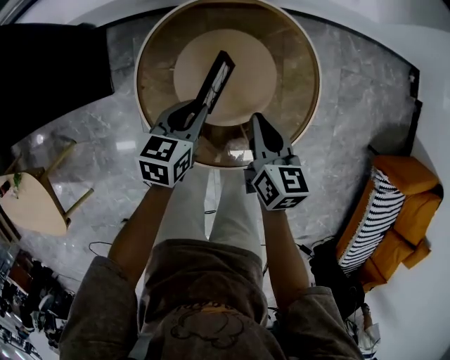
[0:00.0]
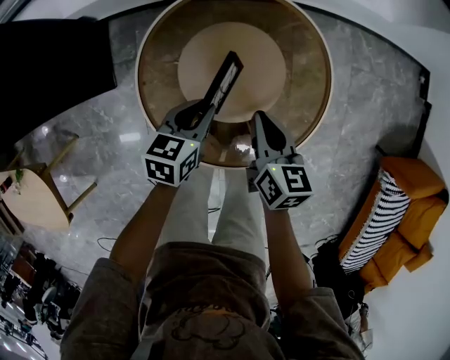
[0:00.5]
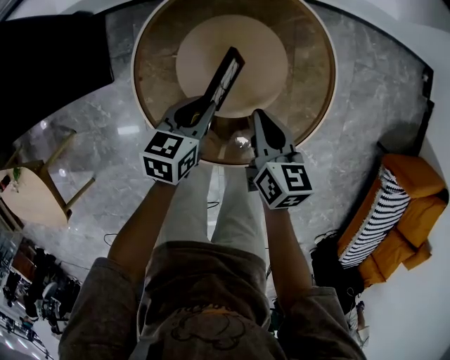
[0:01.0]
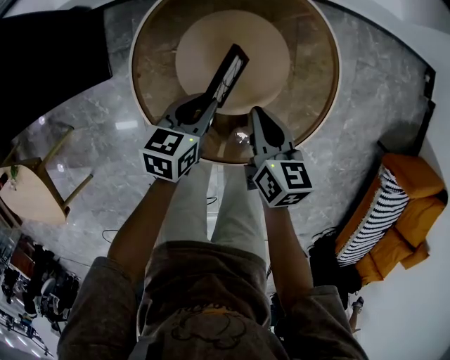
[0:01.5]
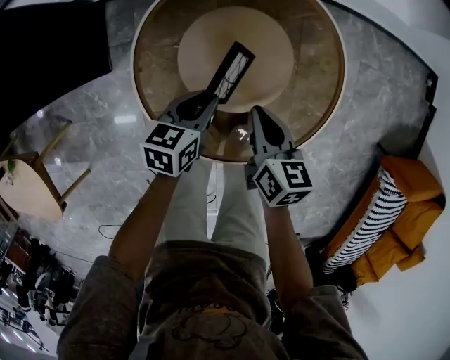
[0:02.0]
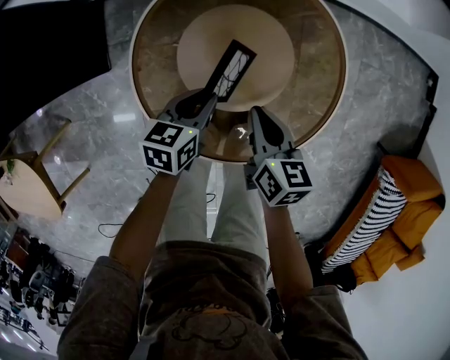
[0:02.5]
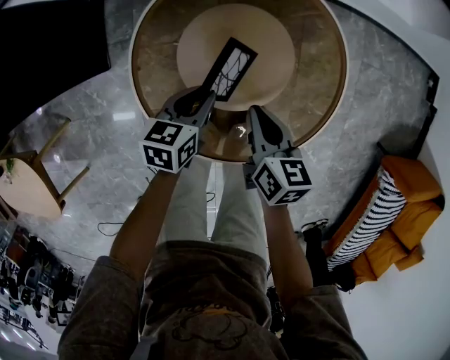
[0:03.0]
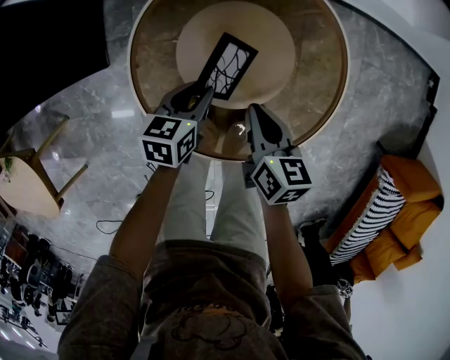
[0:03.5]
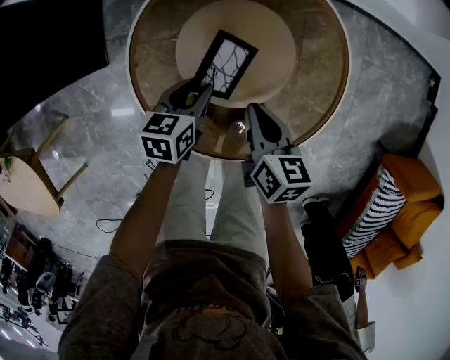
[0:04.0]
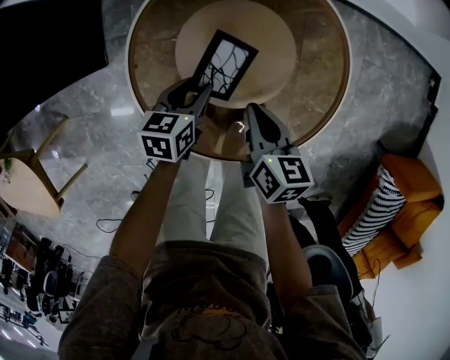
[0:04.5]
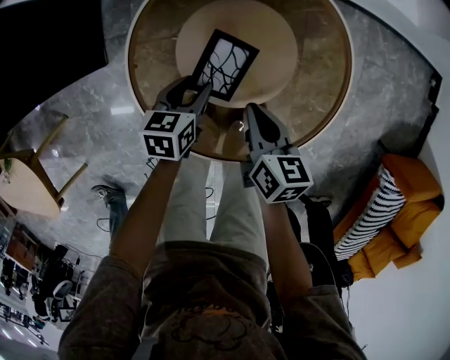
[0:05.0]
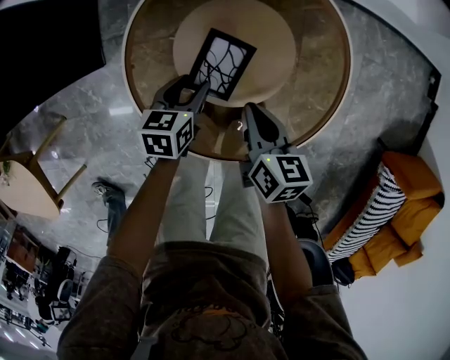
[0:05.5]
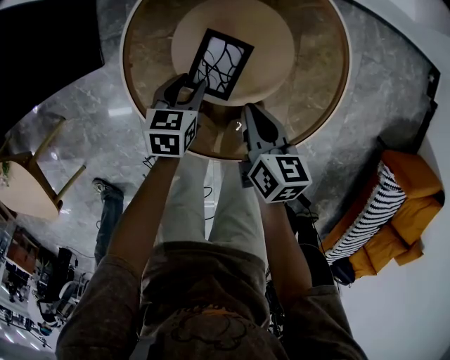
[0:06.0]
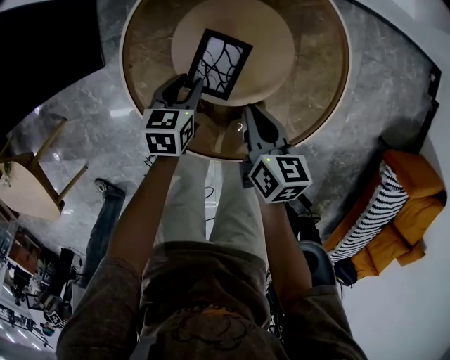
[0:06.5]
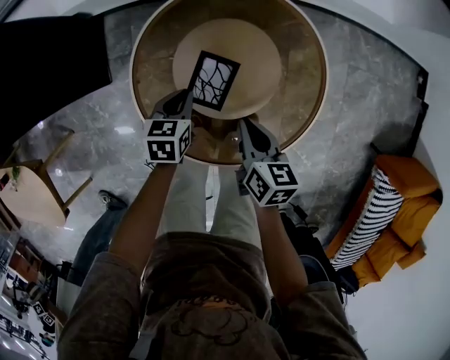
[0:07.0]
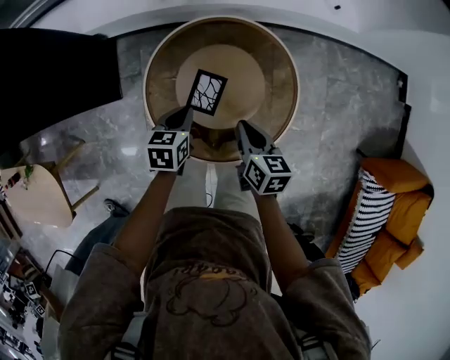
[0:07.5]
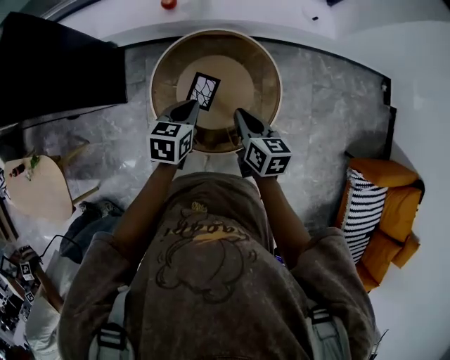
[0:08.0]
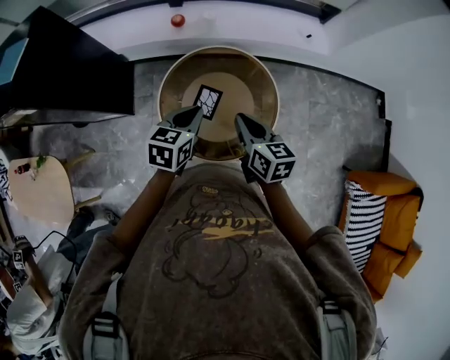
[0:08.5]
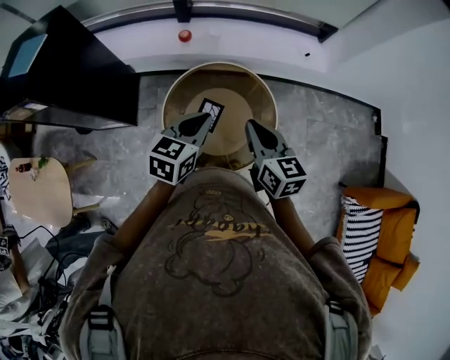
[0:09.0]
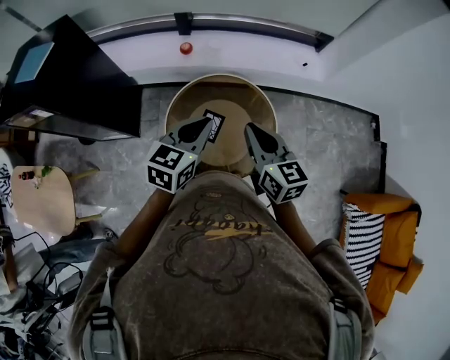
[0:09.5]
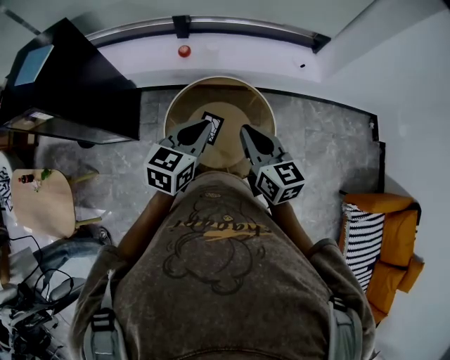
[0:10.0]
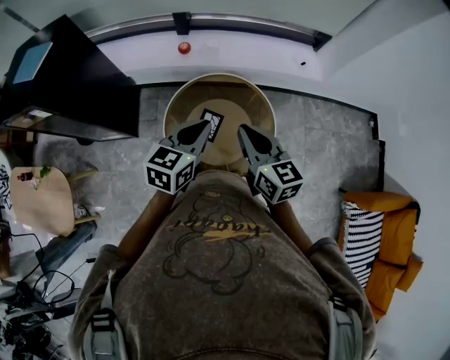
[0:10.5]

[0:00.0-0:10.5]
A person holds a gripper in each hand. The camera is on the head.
0.0 to 2.0 s: Both grippers move downward, some 5 cm.
2.0 to 4.0 s: The grippers make only small movements.
4.0 to 6.5 s: The grippers make only small movements.
6.5 to 8.5 s: Both grippers travel together upward, approximately 35 cm. The left gripper closes. Meanwhile the right gripper turns by roughly 20 degrees.
8.5 to 10.5 s: Both grippers move upward, about 10 cm.

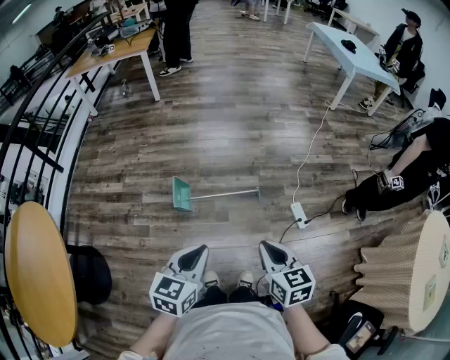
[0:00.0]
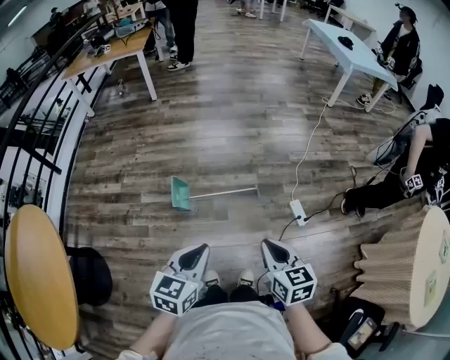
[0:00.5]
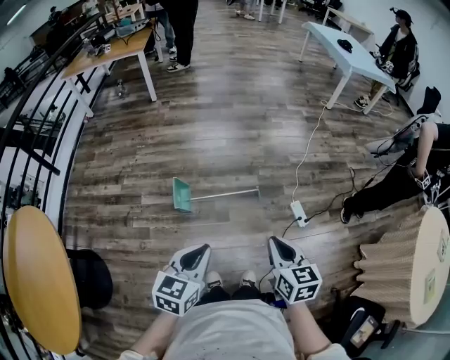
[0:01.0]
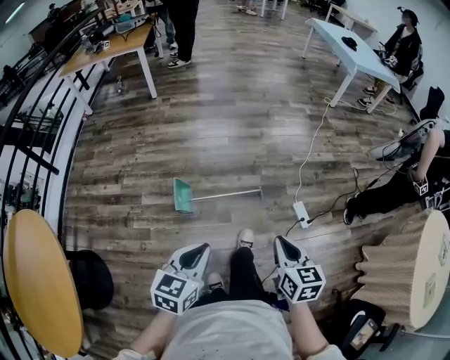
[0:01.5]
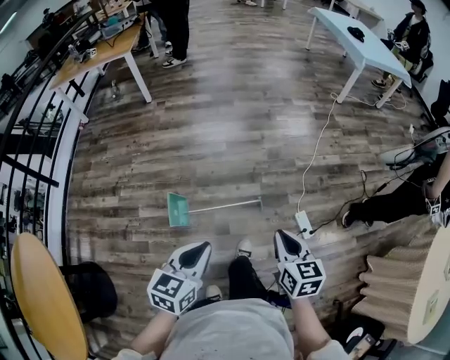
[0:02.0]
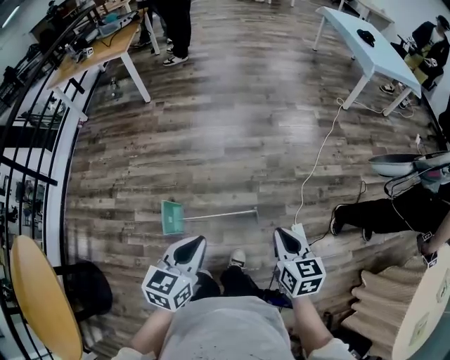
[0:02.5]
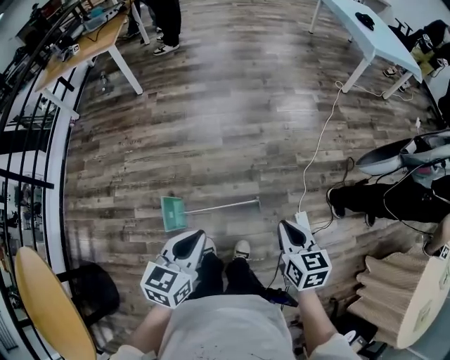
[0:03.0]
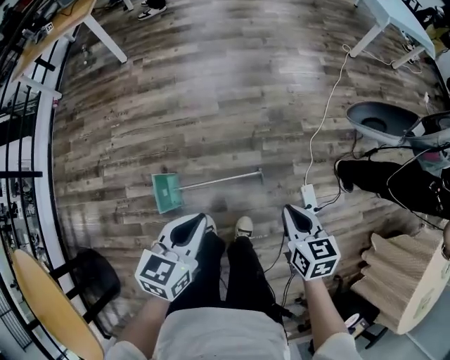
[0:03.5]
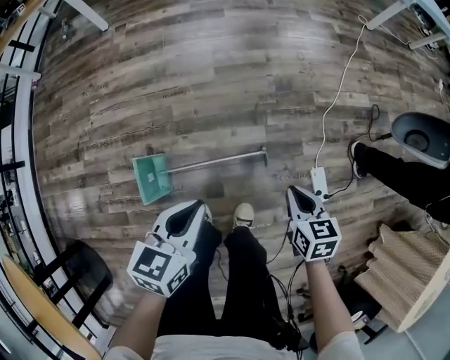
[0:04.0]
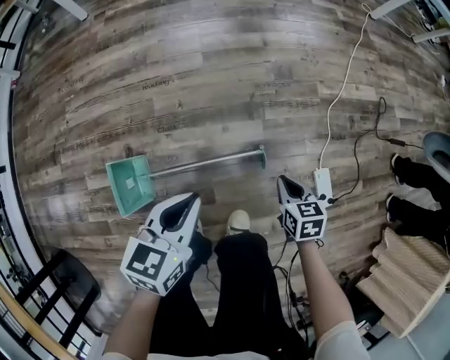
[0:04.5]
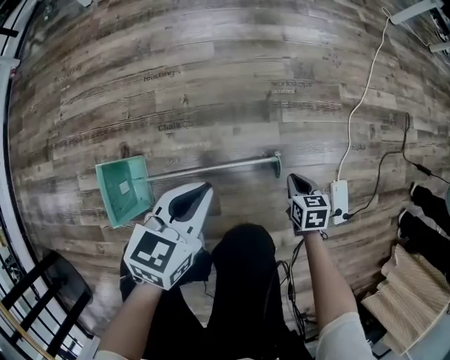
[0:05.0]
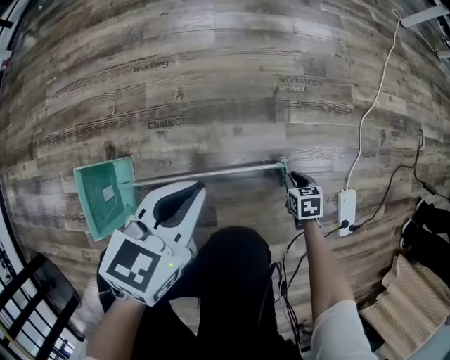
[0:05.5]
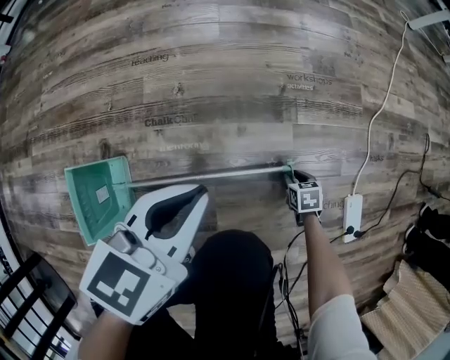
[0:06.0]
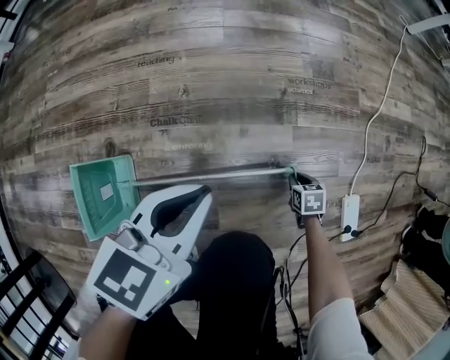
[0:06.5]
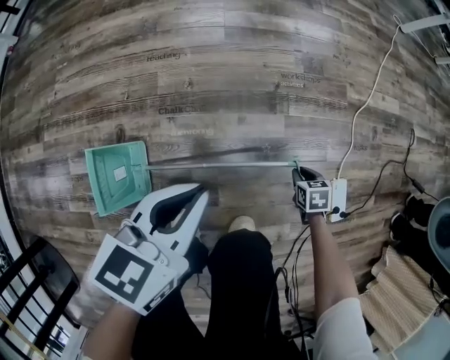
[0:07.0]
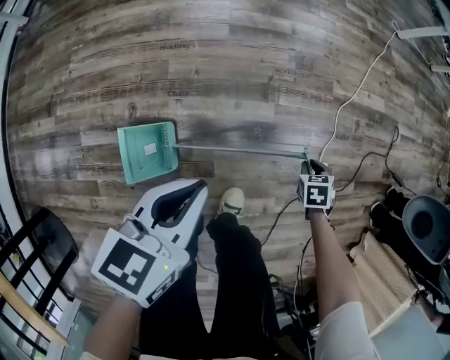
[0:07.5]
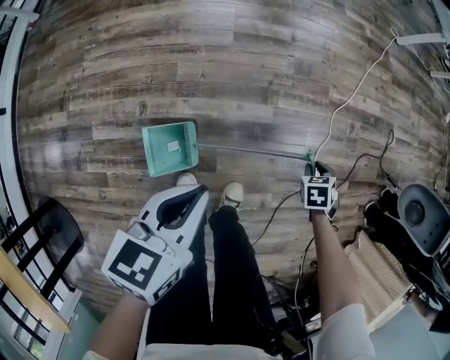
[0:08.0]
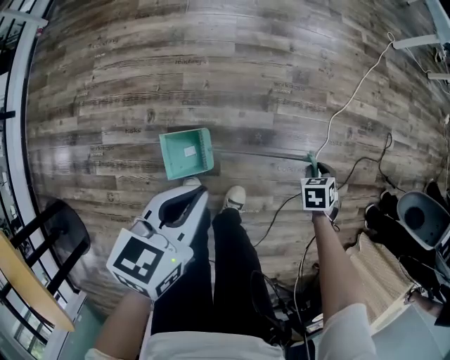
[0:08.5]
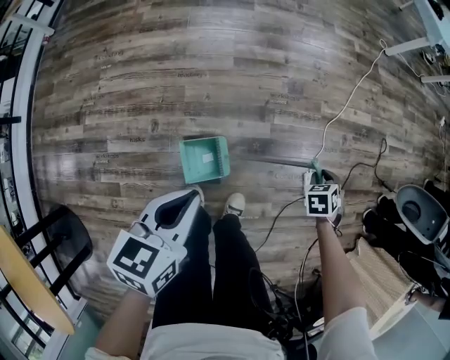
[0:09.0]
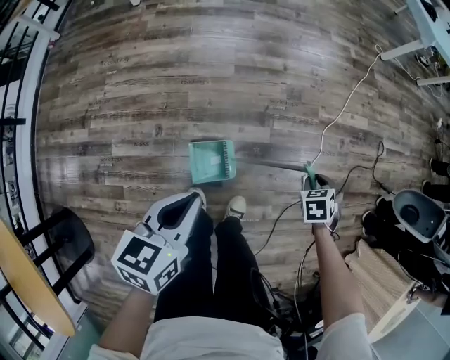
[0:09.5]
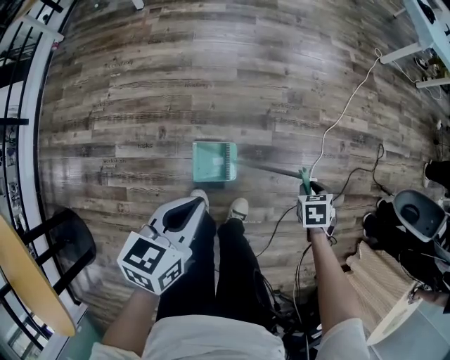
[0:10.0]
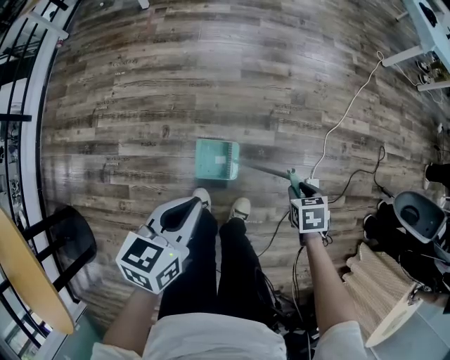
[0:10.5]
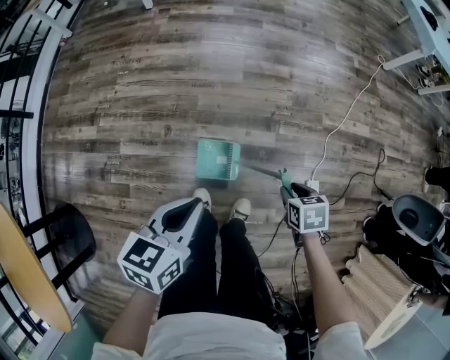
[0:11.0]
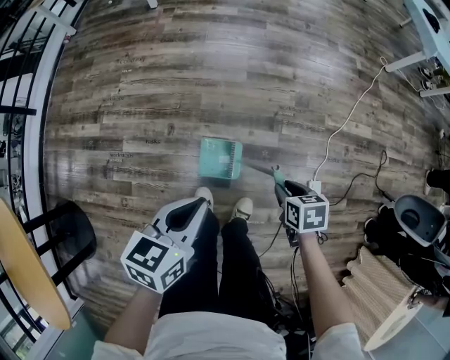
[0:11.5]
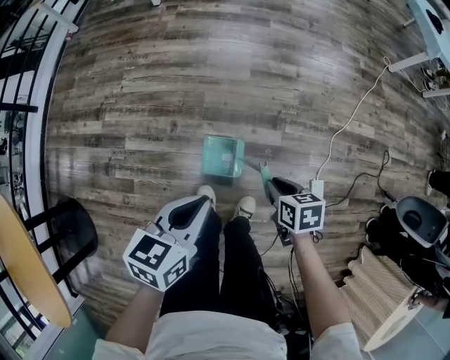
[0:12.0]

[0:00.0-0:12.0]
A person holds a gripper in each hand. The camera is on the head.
0.0 to 2.0 s: The two grippers go some 20 cm forward.
2.0 to 4.0 s: The grippers both shift downward and forward by about 40 cm.
4.0 to 6.0 s: The left gripper heads downward, covering roughly 30 cm; the right gripper shifts approximately 60 cm downward, swivels approximately 30 degrees, and opens up.
6.0 to 8.0 s: The two grippers go approximately 35 cm upward. The right gripper rotates roughly 20 degrees.
8.0 to 10.0 s: The left gripper moves upward, some 10 cm. Meanwhile the right gripper travels upward by approximately 15 cm.
10.0 to 12.0 s: The right gripper moves approximately 20 cm, and swivels approximately 30 degrees.

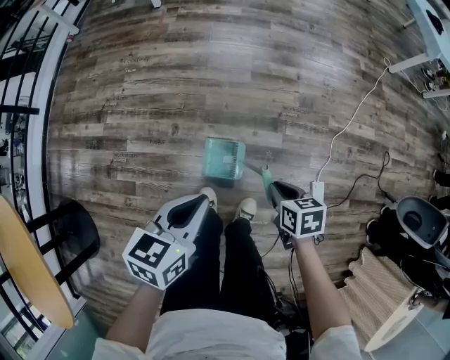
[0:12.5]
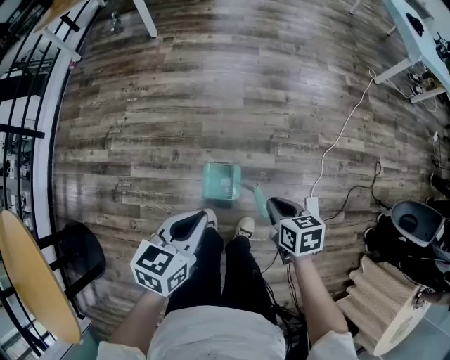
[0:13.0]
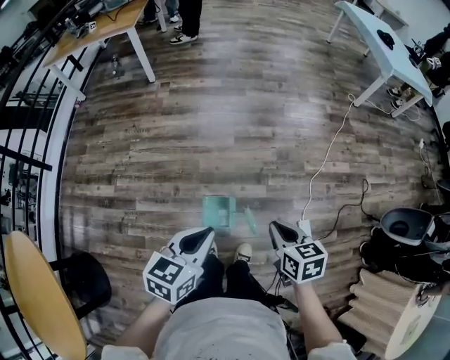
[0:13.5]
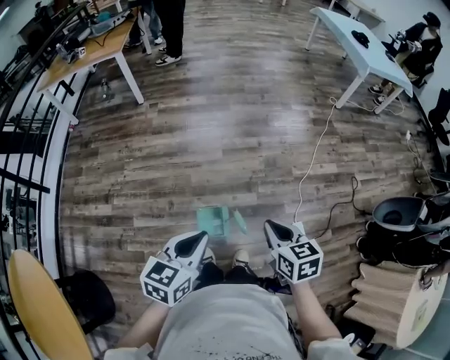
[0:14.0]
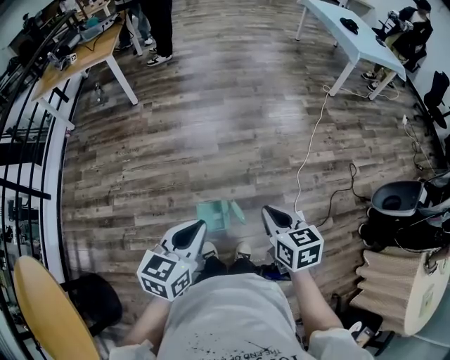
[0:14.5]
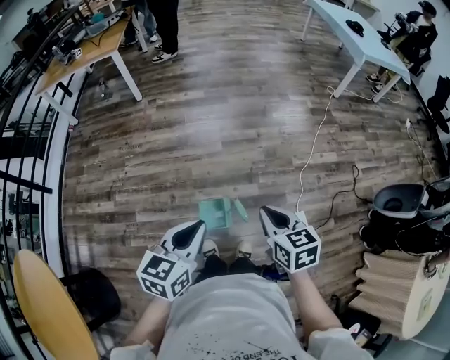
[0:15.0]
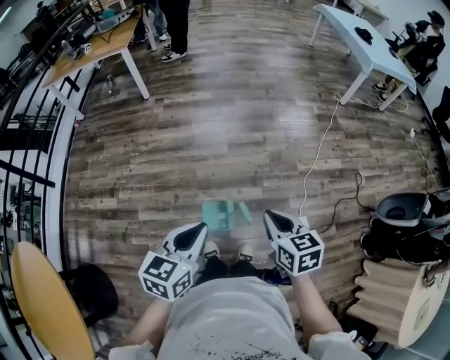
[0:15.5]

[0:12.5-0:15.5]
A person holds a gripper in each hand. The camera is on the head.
12.5 to 14.0 s: The right gripper shifts about 30 cm upward, and turns by some 30 degrees, while the left gripper moves upward, some 20 cm.
14.0 to 15.5 s: The grippers make only small movements.

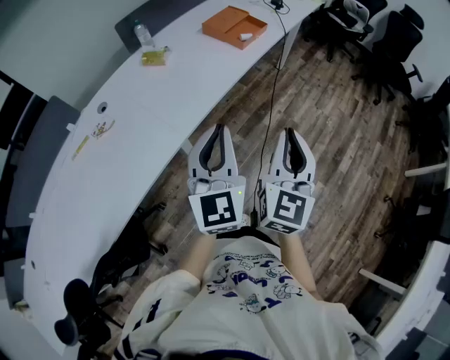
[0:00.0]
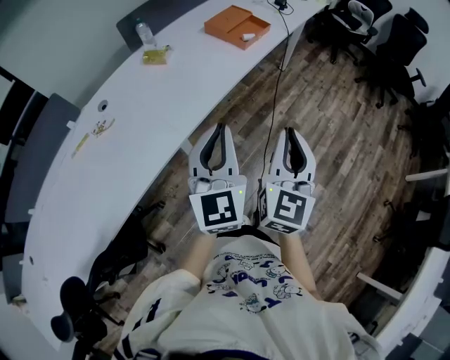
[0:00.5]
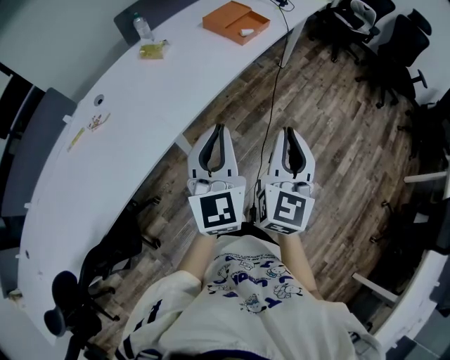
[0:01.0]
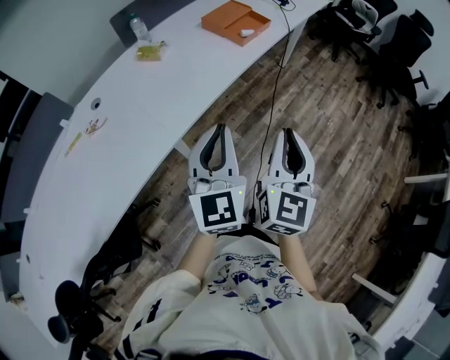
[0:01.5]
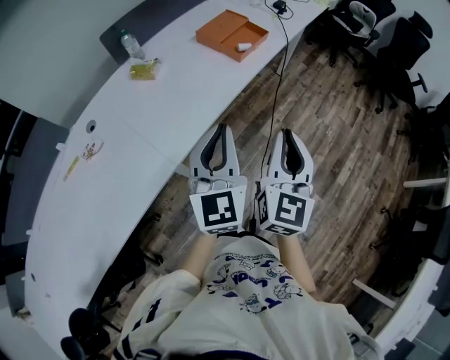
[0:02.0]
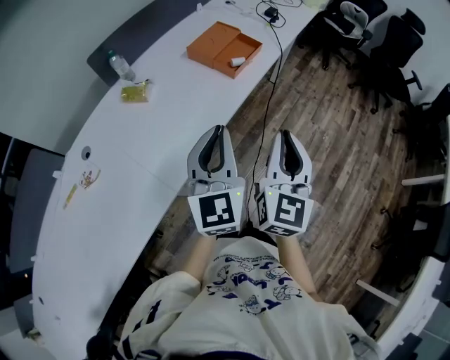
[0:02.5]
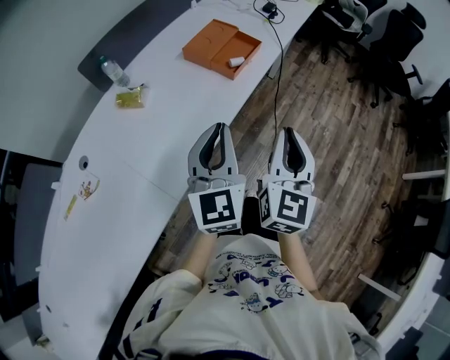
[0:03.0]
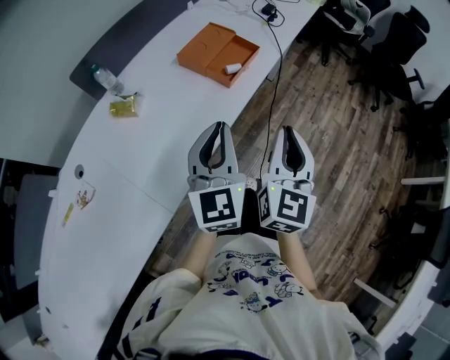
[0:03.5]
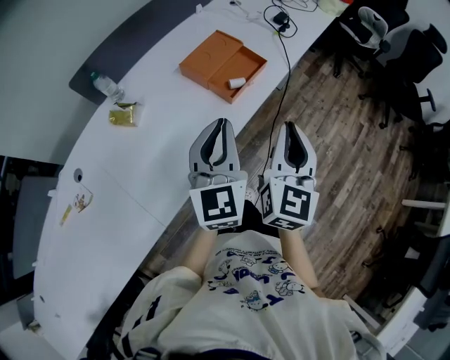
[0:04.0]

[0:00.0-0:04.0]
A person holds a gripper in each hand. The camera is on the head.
0.0 to 2.0 s: The grippers both shift forward by about 15 cm.
2.0 to 4.0 s: Both grippers travel together forward, about 25 cm.
